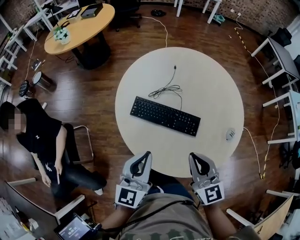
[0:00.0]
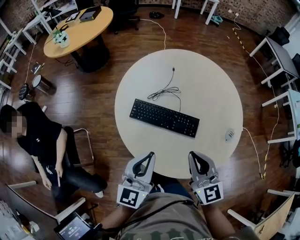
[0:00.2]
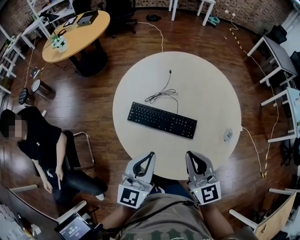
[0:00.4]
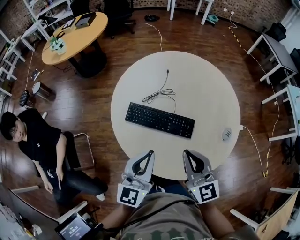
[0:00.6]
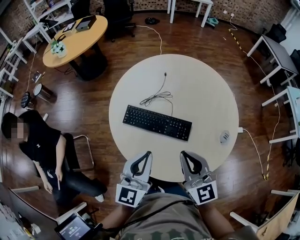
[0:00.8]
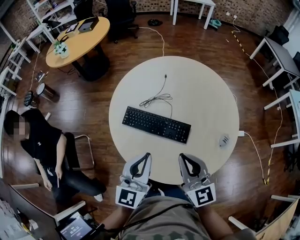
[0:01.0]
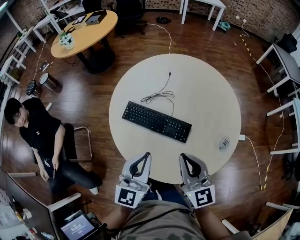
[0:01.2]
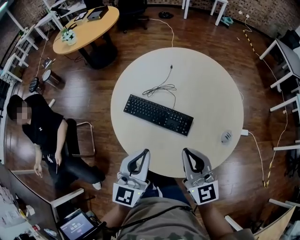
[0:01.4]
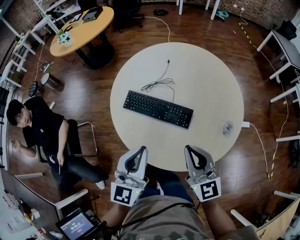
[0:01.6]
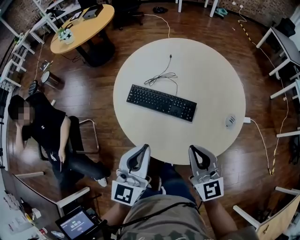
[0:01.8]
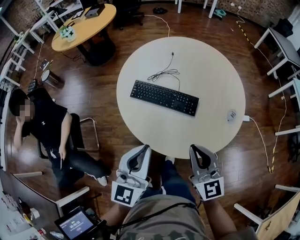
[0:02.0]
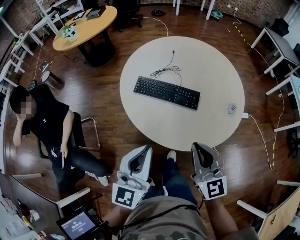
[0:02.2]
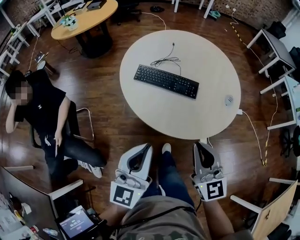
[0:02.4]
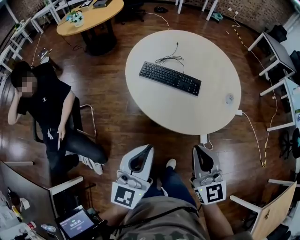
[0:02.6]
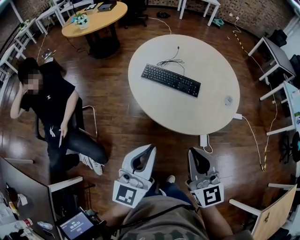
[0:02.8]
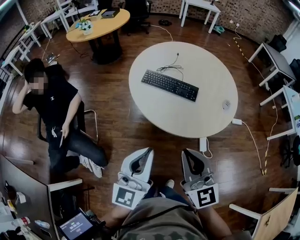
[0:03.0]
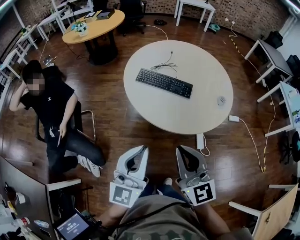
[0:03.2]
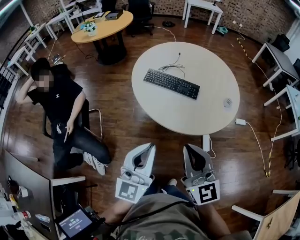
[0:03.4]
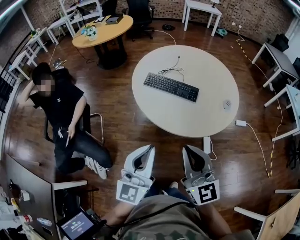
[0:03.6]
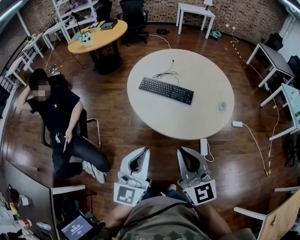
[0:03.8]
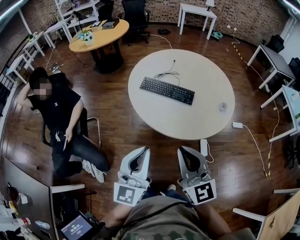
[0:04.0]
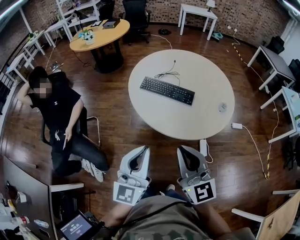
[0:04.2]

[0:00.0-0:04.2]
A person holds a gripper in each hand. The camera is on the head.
0.0 to 1.4 s: The two grippers go about 5 cm to the right.
1.4 to 2.8 s: The two grippers go about 30 cm backward.
2.8 to 4.2 s: The grippers make only small movements.

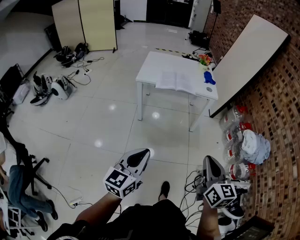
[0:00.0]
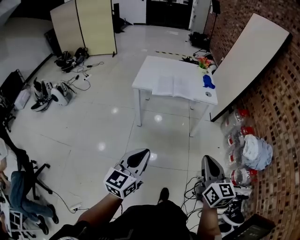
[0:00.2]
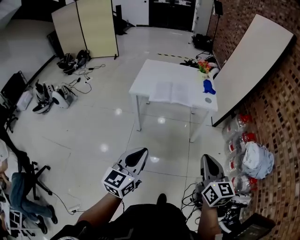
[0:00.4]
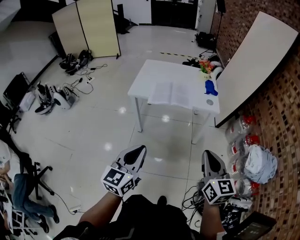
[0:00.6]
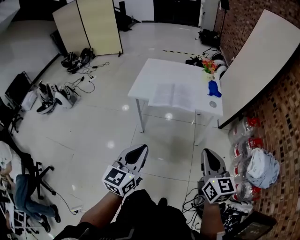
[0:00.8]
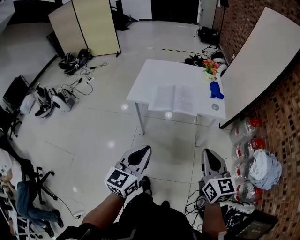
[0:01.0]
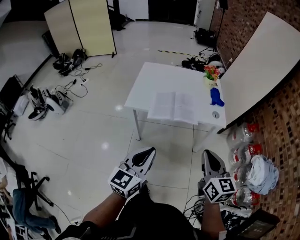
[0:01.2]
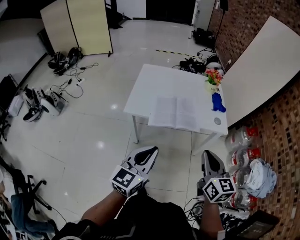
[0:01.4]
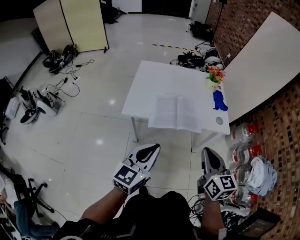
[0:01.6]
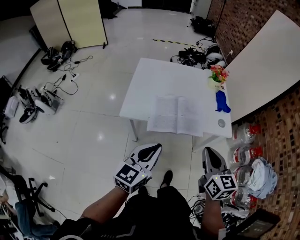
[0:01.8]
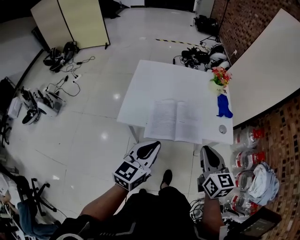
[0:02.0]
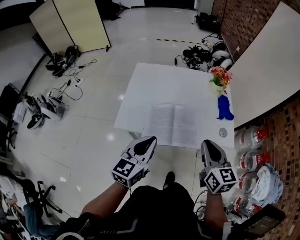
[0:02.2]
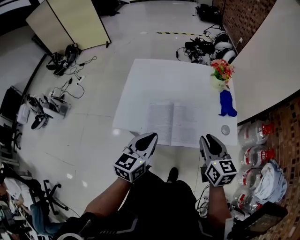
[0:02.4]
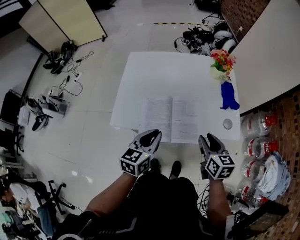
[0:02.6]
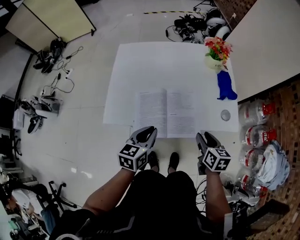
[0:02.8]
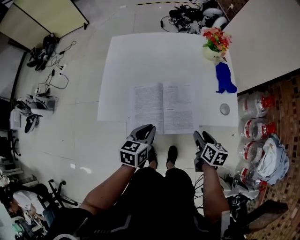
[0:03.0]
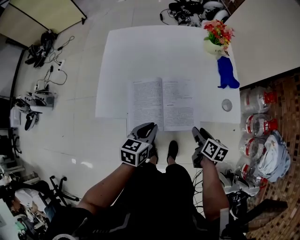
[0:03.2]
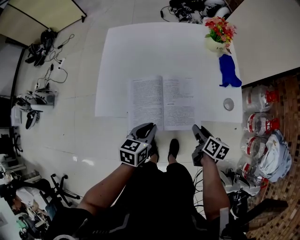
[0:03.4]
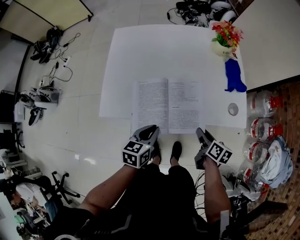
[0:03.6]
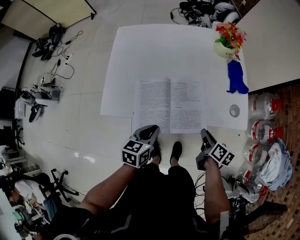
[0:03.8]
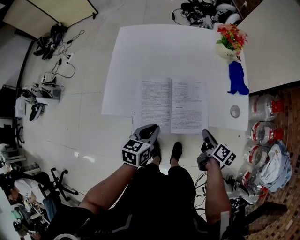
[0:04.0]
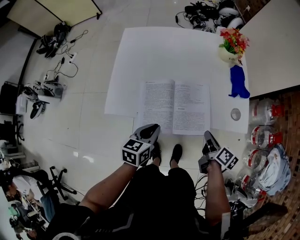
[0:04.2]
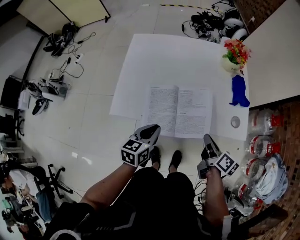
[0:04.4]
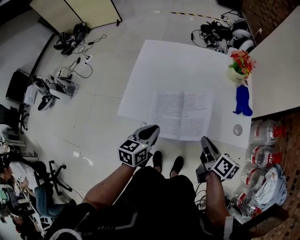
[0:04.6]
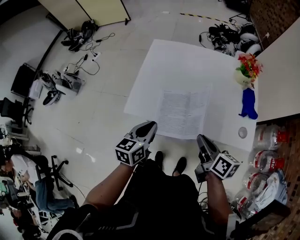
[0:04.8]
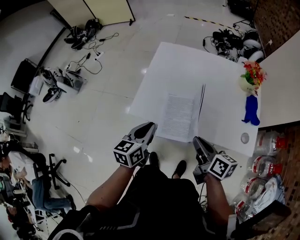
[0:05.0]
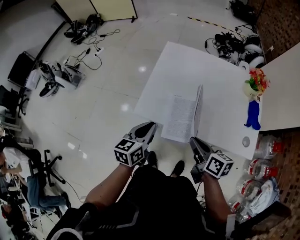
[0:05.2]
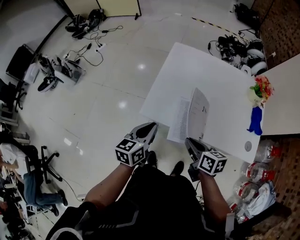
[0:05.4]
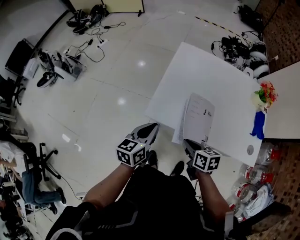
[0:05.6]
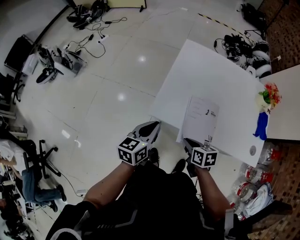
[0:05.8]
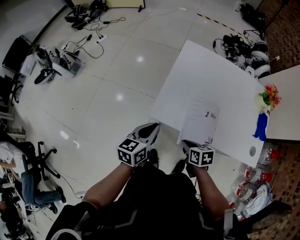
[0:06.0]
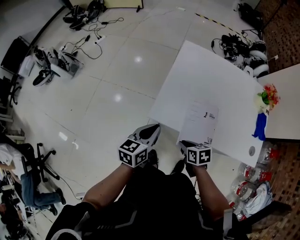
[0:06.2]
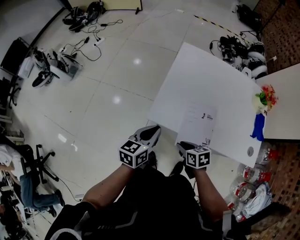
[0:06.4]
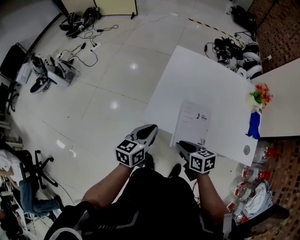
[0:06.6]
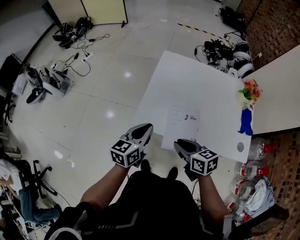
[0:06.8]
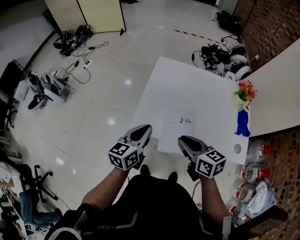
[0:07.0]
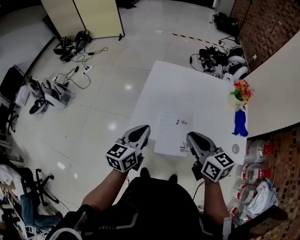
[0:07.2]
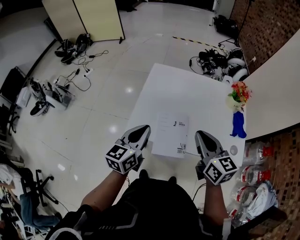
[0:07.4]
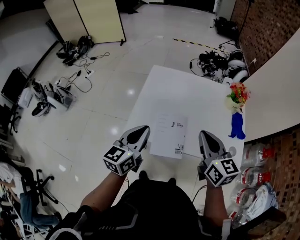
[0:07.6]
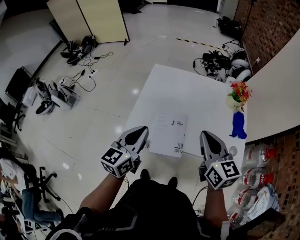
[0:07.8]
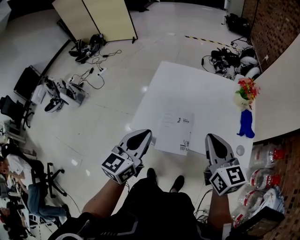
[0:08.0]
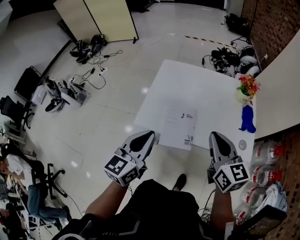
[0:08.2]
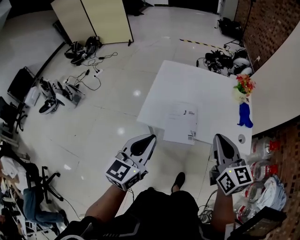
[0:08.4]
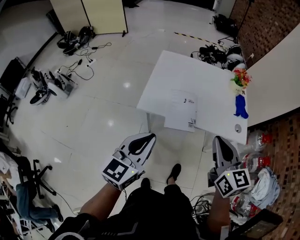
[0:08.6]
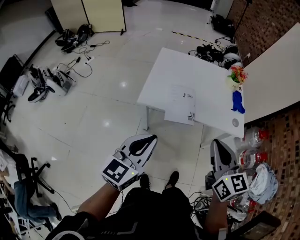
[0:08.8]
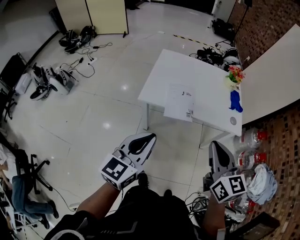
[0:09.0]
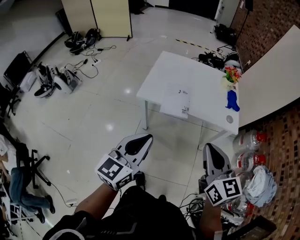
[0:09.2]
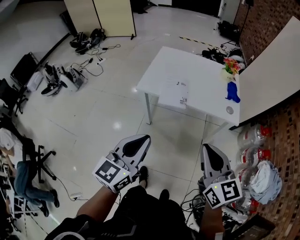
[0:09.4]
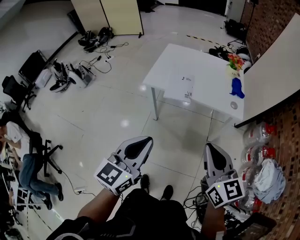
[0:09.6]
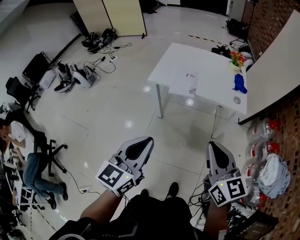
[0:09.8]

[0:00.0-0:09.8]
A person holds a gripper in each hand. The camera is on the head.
0.0 to 1.4 s: The pair of grippers is taken forward, approximately 40 cm.
1.4 to 2.8 s: The two grippers go approximately 35 cm forward and downward. The right gripper turns by approximately 30 degrees, and opens, while the left gripper swivels approximately 30 degrees.
2.8 to 4.2 s: The grippers both shift downward by approximately 5 cm. The right gripper rotates roughly 30 degrees, and closes its fingers.
4.2 to 5.6 s: The right gripper changes place by approximately 30 cm, and changes its angle by some 50 degrees. Meanwhile the left gripper moves about 25 cm, and rotates about 20 degrees.
5.6 to 7.0 s: The left gripper heads upward and to the right, covering approximately 10 cm; the right gripper shifts some 15 cm upward, and changes its angle by some 20 degrees.
7.0 to 8.4 s: The right gripper goes approximately 20 cm upward, to the right and backward, and turns by about 30 degrees, while the left gripper goes approximately 20 cm backward and upward.
8.4 to 9.8 s: Both grippers move backward, some 35 cm.

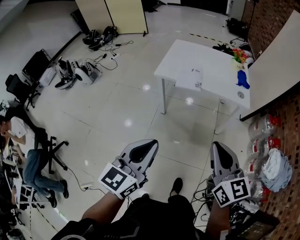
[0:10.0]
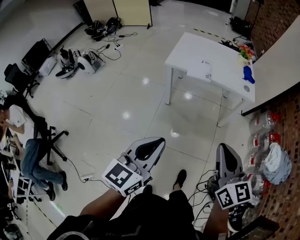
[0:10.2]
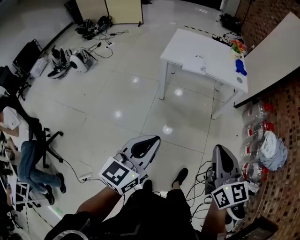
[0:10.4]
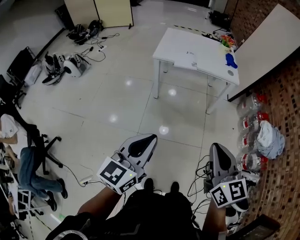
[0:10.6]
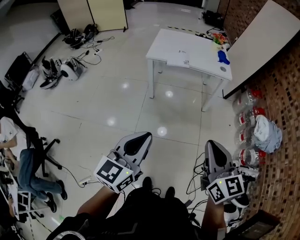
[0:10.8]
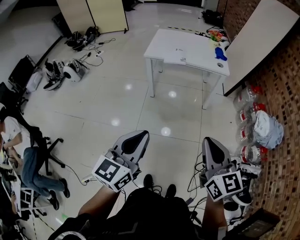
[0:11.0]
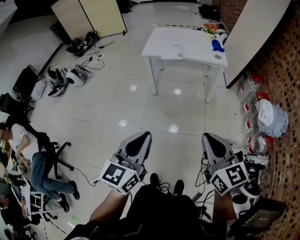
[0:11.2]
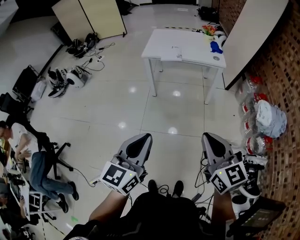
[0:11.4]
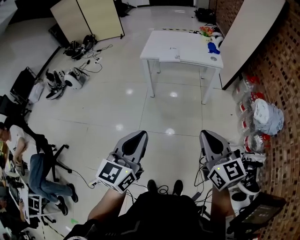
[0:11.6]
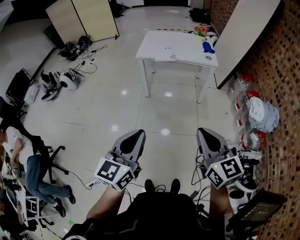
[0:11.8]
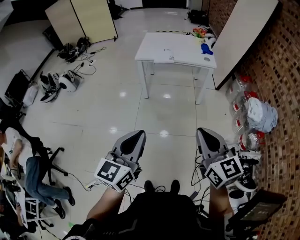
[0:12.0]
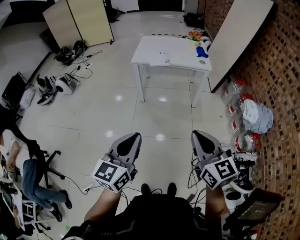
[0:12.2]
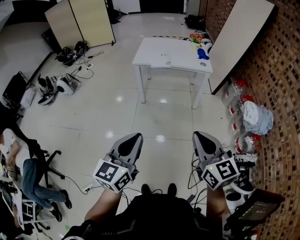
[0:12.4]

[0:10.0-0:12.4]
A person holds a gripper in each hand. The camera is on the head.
10.0 to 11.2 s: The grippers both shift backward by approximately 25 cm.
11.2 to 12.4 s: The right gripper shifts by roughly 5 cm, while the left gripper moves about 5 cm.

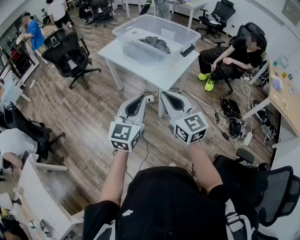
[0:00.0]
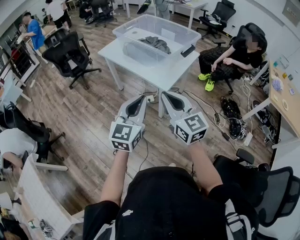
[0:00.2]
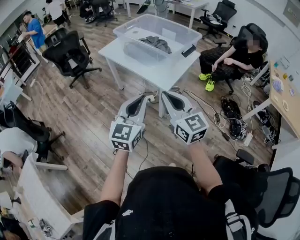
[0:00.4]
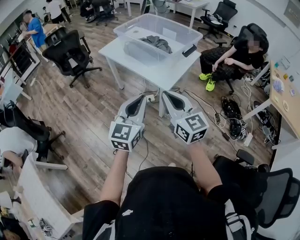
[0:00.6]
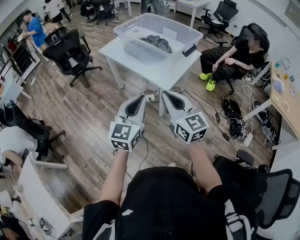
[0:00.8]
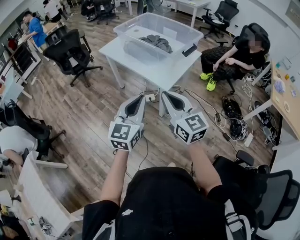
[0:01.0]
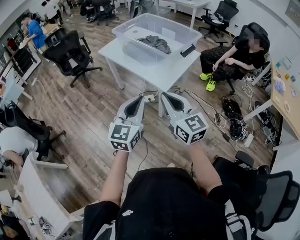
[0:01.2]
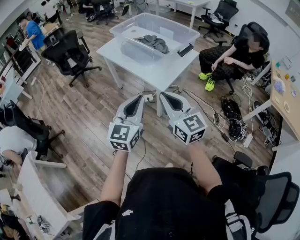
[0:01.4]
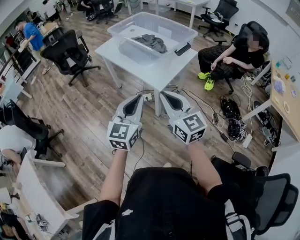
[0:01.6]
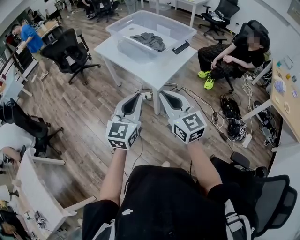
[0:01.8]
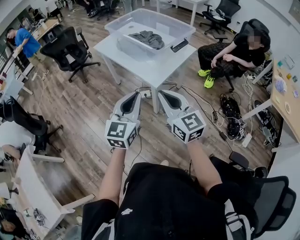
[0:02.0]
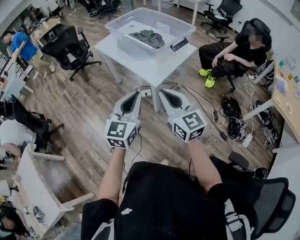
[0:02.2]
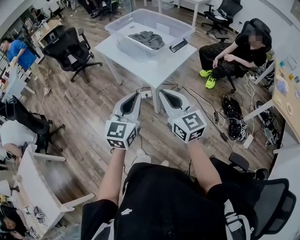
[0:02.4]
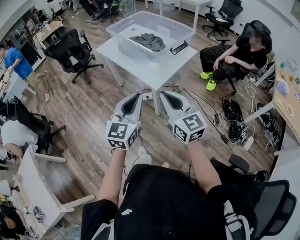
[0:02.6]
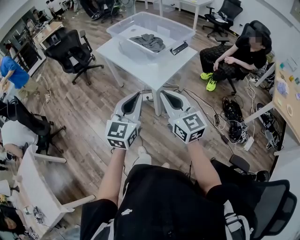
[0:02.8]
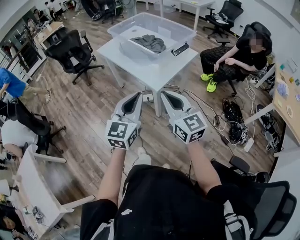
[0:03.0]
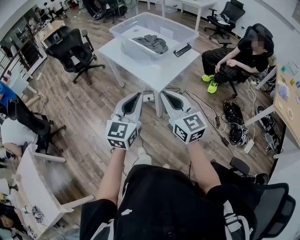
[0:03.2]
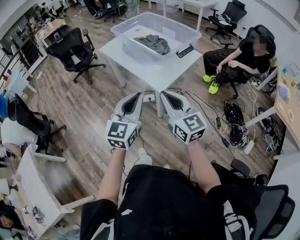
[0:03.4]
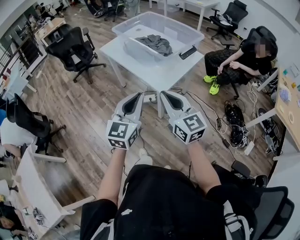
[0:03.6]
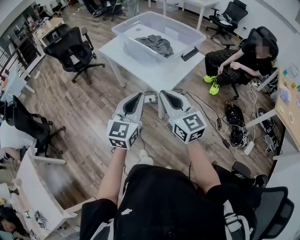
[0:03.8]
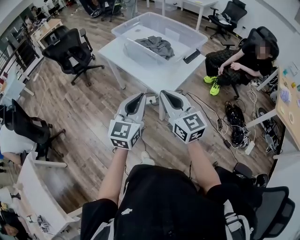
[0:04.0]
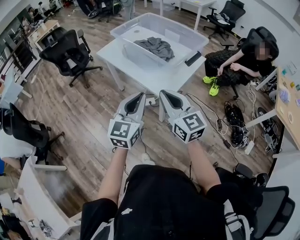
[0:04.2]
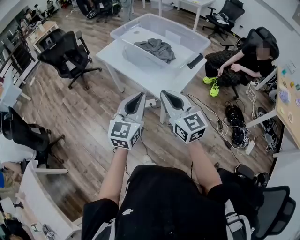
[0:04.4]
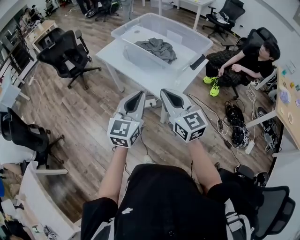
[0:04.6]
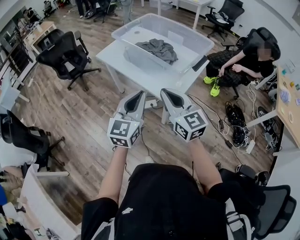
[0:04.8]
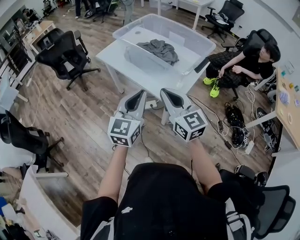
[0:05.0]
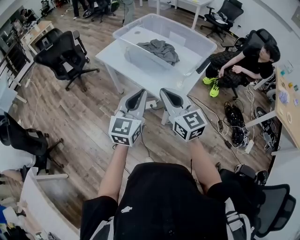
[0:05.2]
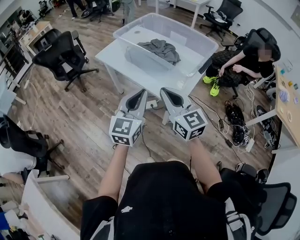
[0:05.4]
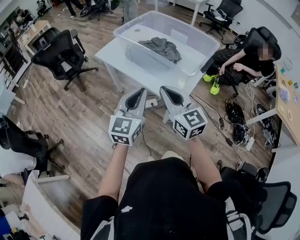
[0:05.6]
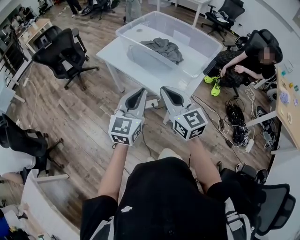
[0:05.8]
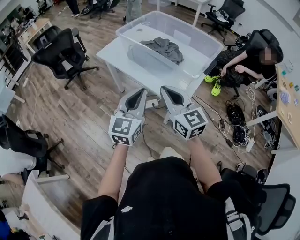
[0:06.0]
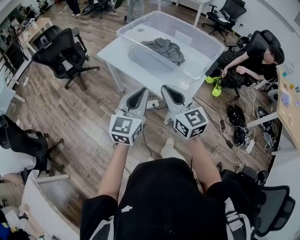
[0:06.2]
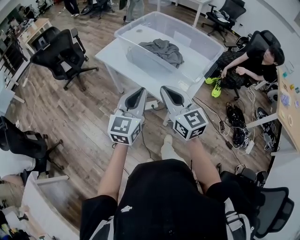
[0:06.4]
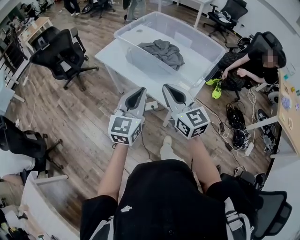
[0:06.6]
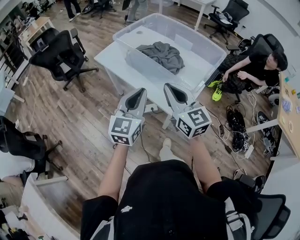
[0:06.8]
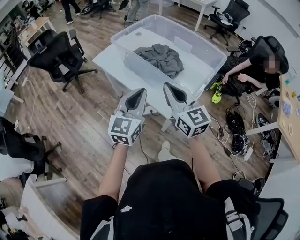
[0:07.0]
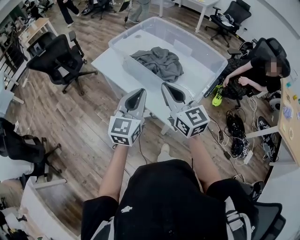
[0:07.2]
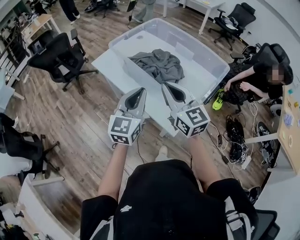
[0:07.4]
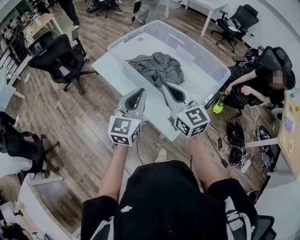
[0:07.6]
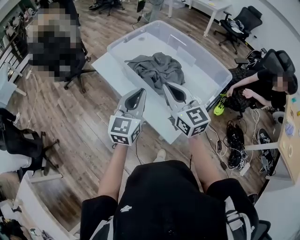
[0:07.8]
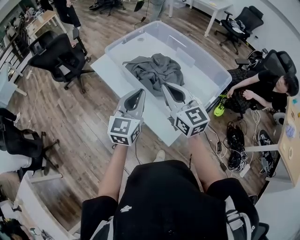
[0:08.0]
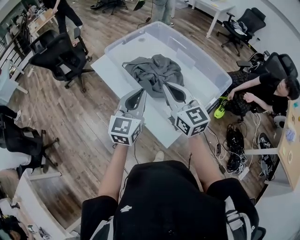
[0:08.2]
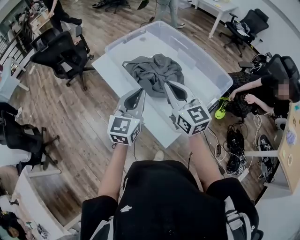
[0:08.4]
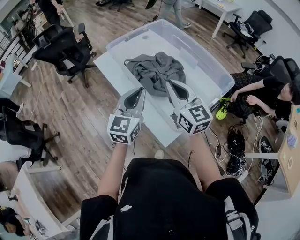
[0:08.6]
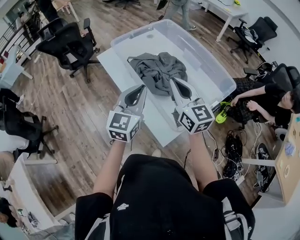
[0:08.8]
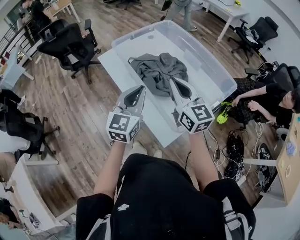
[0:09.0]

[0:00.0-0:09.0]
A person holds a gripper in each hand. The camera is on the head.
0.0 to 1.6 s: The left gripper shifts by approximately 5 cm, while the right gripper moves to the right, roughly 5 cm.
1.6 to 3.0 s: The right gripper travels to the right by approximately 5 cm.
3.0 to 4.4 s: Both grippers move forward and to the left, roughly 15 cm.
4.4 to 6.0 s: Both grippers move forward and to the left, approximately 15 cm.
6.0 to 7.6 s: Both grippers move forward and to the right, roughly 20 cm.
7.6 to 9.0 s: The right gripper is displaced forward and to the right by roughly 10 cm.
